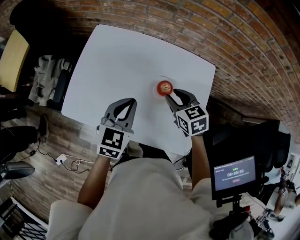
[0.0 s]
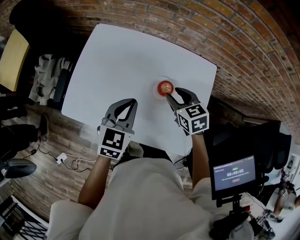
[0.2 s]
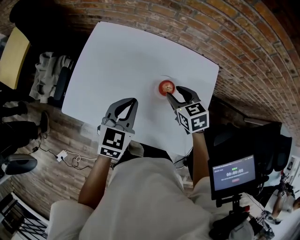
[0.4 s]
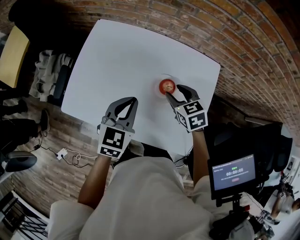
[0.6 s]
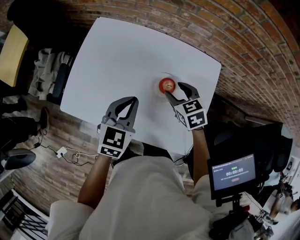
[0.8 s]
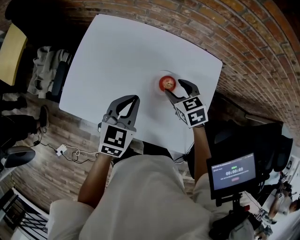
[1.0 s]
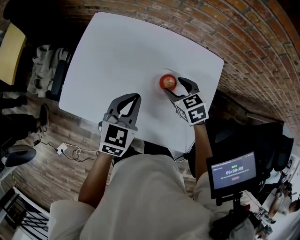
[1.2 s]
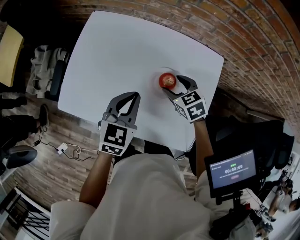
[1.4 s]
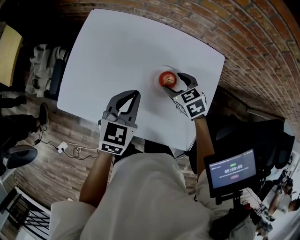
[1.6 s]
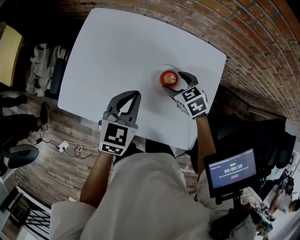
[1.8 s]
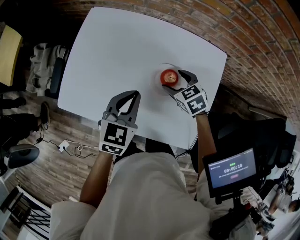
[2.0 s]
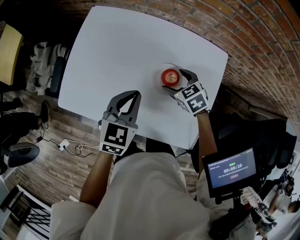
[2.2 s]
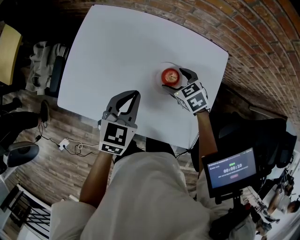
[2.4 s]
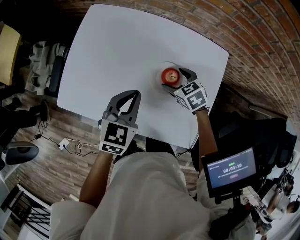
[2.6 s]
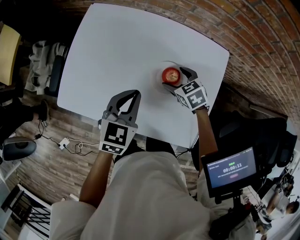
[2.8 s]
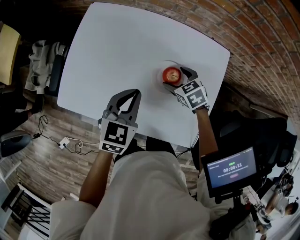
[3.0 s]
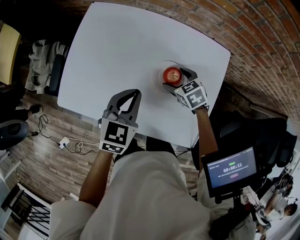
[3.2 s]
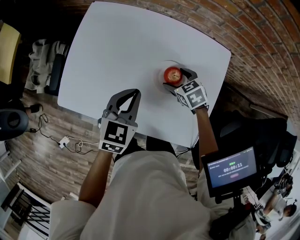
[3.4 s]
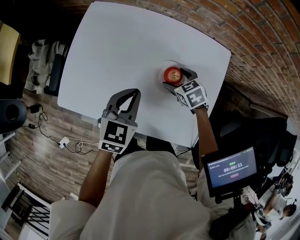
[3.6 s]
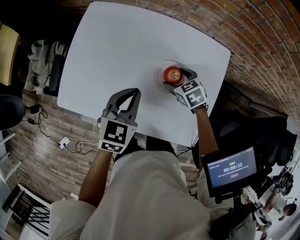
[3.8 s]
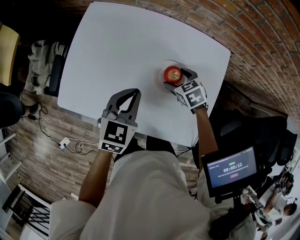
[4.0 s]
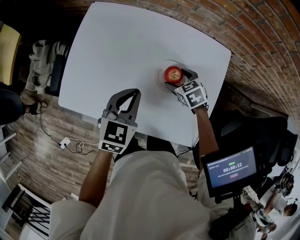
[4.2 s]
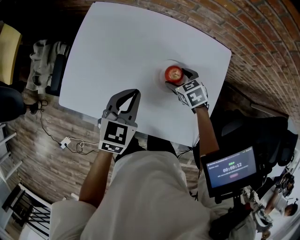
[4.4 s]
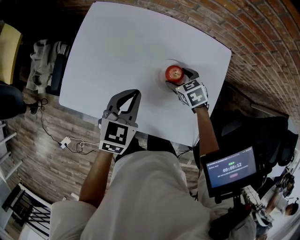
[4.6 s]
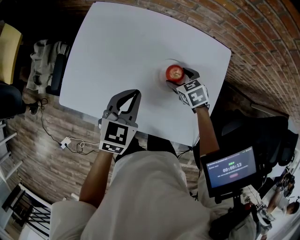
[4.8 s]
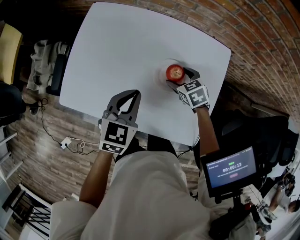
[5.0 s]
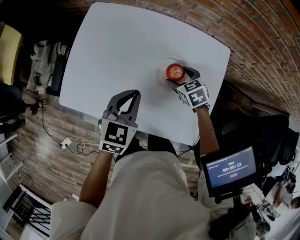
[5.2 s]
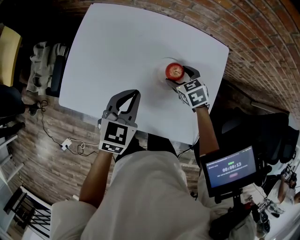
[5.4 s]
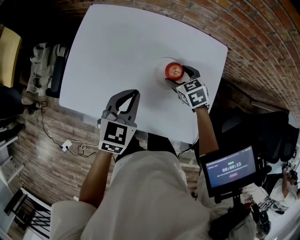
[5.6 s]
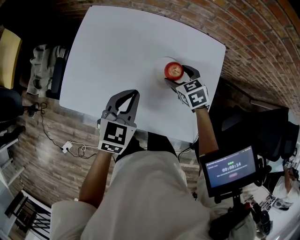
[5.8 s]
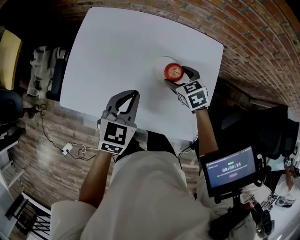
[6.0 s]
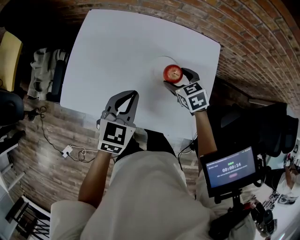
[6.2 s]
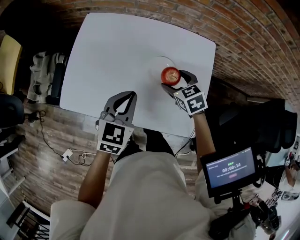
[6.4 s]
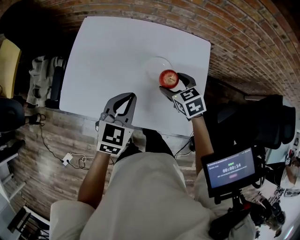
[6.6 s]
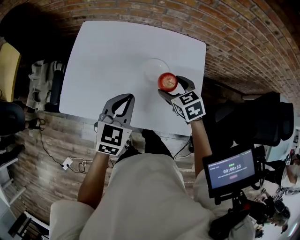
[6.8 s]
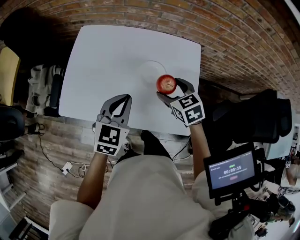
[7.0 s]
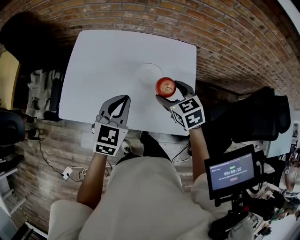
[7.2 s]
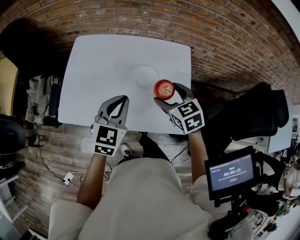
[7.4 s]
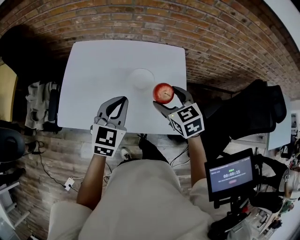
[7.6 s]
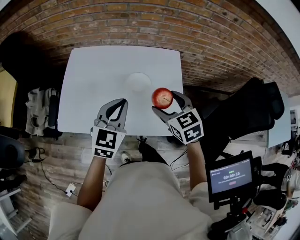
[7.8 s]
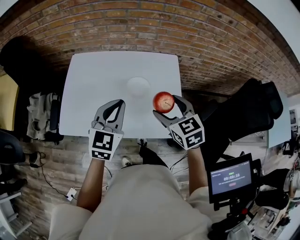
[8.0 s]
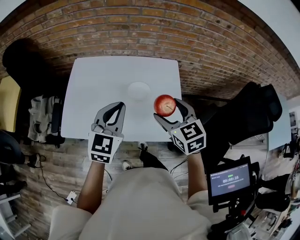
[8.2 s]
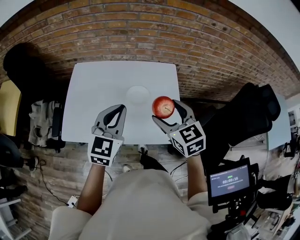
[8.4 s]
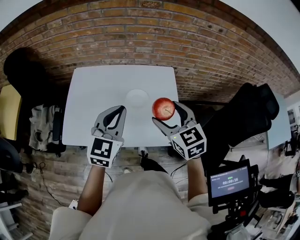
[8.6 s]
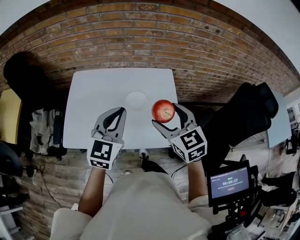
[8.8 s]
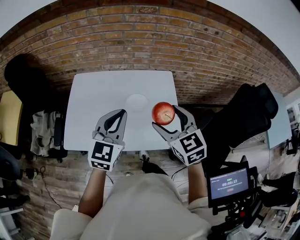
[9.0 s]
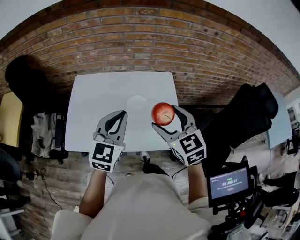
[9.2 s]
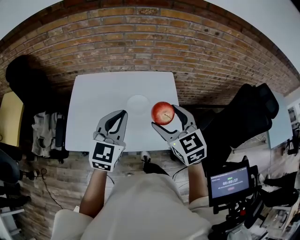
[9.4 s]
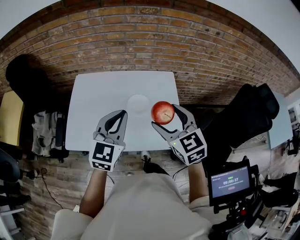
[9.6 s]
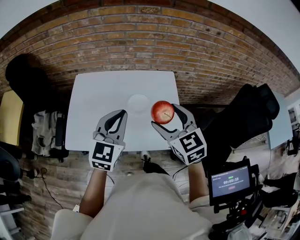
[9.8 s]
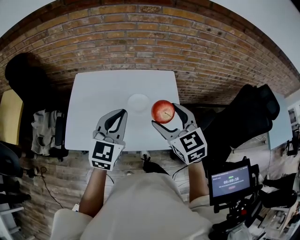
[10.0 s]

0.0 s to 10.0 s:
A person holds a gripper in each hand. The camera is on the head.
0.0 to 1.4 s: The right gripper moves downward, approximately 5 cm, and opens up.
1.4 to 2.8 s: The right gripper travels downward by roughly 5 cm.
2.8 to 5.8 s: There are only small adjustments of the grippers.
5.8 to 7.2 s: The right gripper goes about 15 cm upward and backward, while the left gripper heads upward and backward, covering about 10 cm.
7.2 to 8.6 s: The left gripper goes some 10 cm upward. The right gripper goes roughly 15 cm upward and backward.
8.6 to 10.0 s: The grippers stay close to where they were, moving slightly.

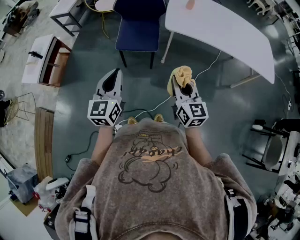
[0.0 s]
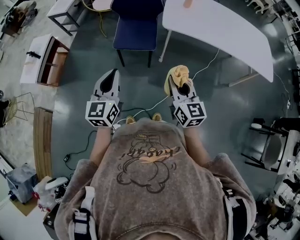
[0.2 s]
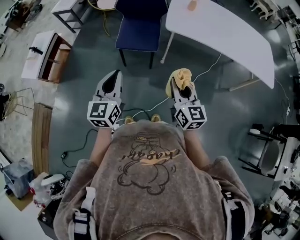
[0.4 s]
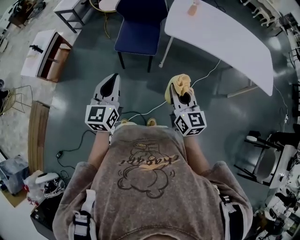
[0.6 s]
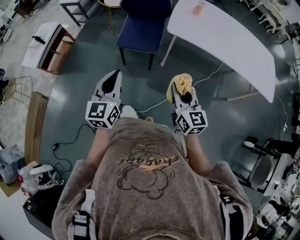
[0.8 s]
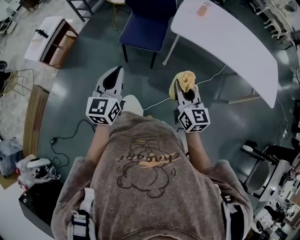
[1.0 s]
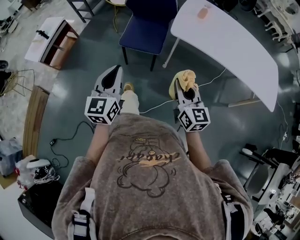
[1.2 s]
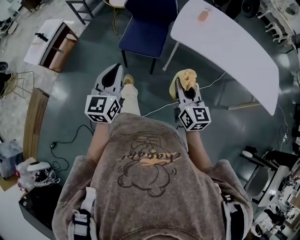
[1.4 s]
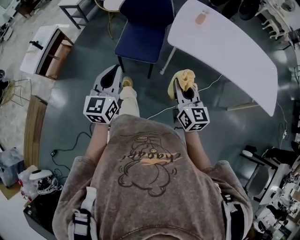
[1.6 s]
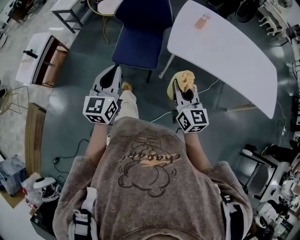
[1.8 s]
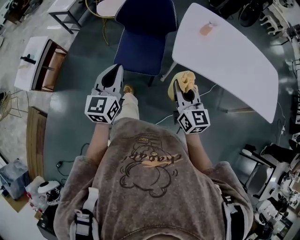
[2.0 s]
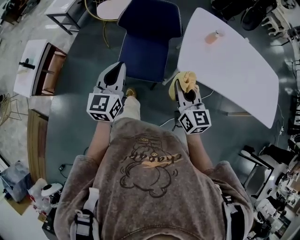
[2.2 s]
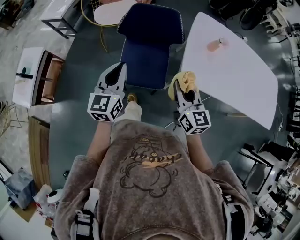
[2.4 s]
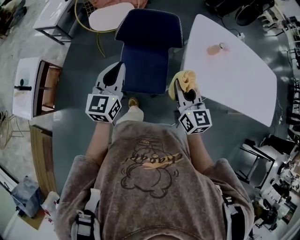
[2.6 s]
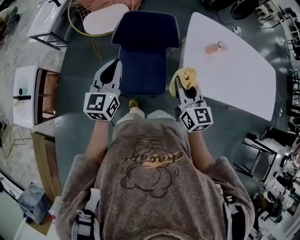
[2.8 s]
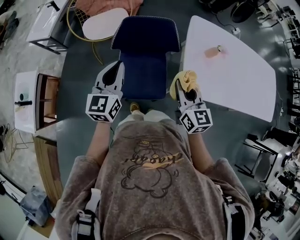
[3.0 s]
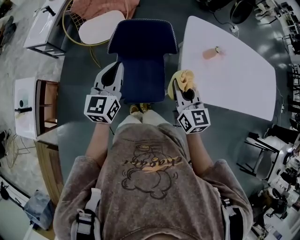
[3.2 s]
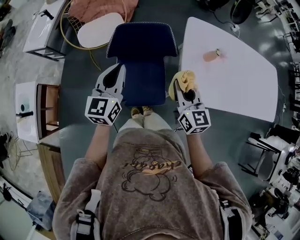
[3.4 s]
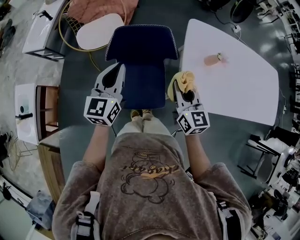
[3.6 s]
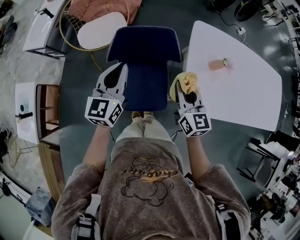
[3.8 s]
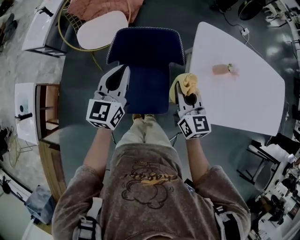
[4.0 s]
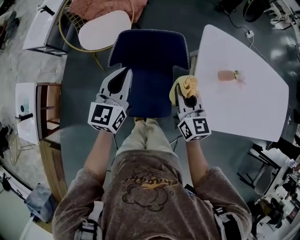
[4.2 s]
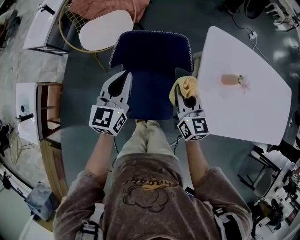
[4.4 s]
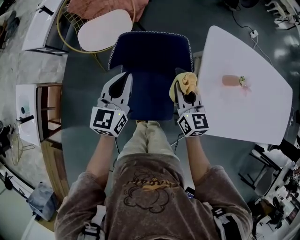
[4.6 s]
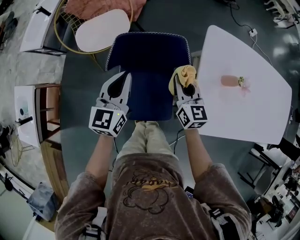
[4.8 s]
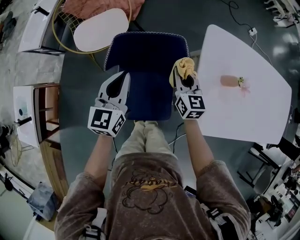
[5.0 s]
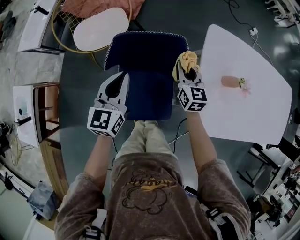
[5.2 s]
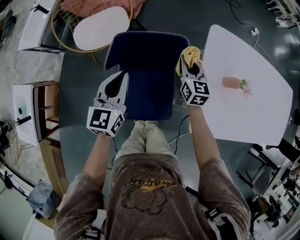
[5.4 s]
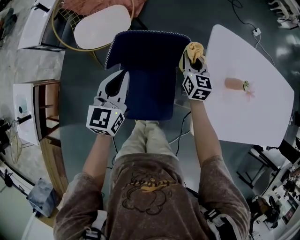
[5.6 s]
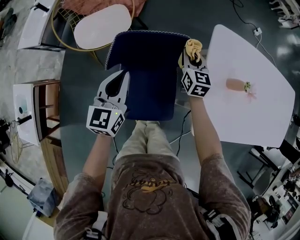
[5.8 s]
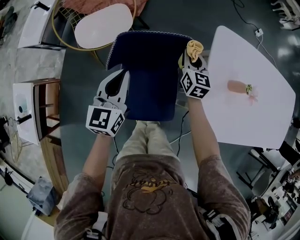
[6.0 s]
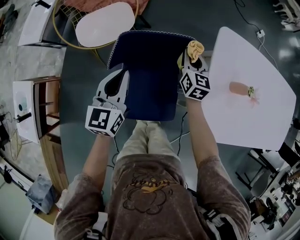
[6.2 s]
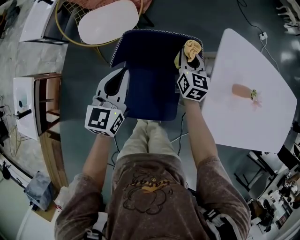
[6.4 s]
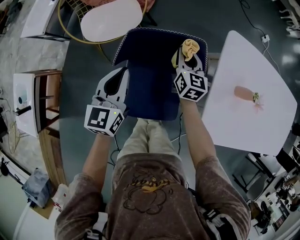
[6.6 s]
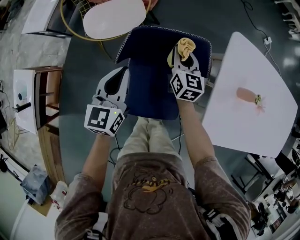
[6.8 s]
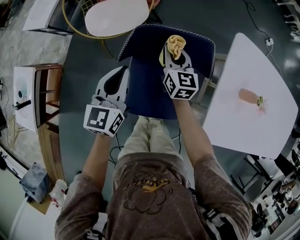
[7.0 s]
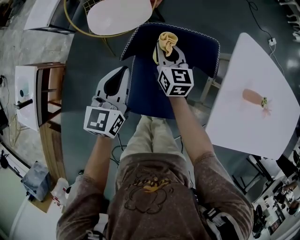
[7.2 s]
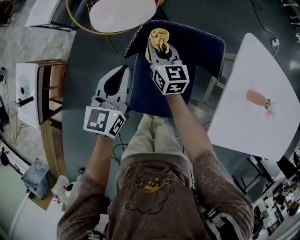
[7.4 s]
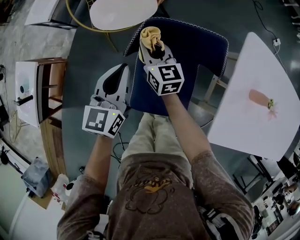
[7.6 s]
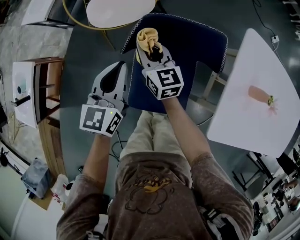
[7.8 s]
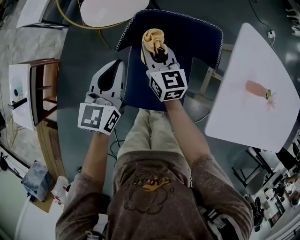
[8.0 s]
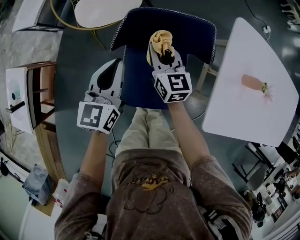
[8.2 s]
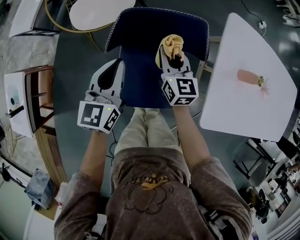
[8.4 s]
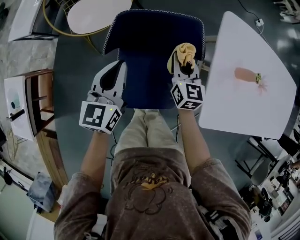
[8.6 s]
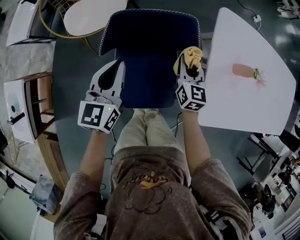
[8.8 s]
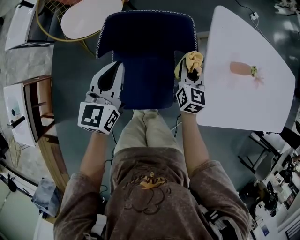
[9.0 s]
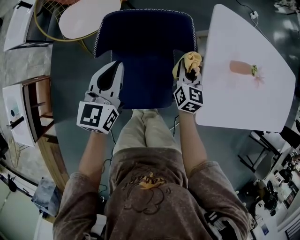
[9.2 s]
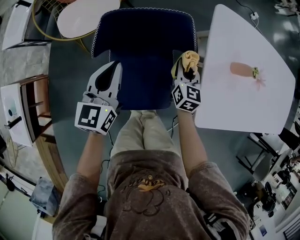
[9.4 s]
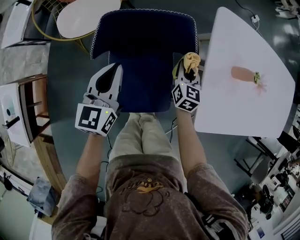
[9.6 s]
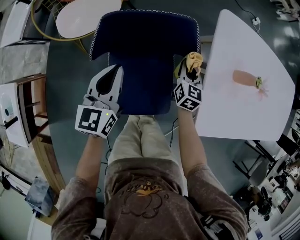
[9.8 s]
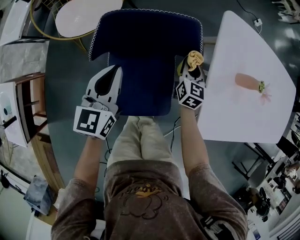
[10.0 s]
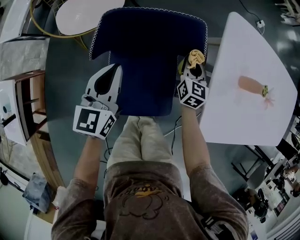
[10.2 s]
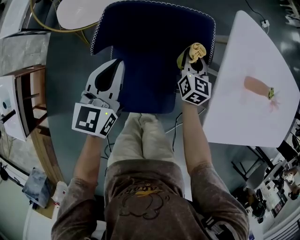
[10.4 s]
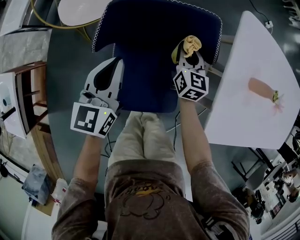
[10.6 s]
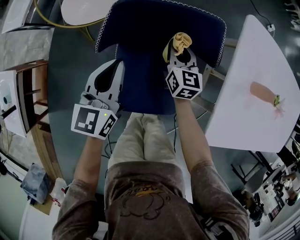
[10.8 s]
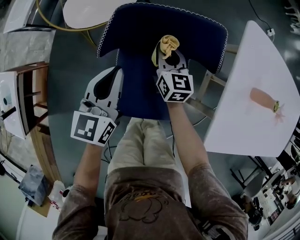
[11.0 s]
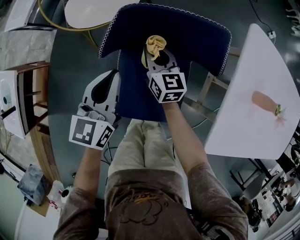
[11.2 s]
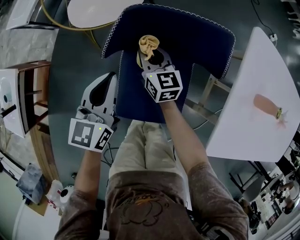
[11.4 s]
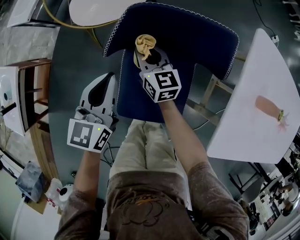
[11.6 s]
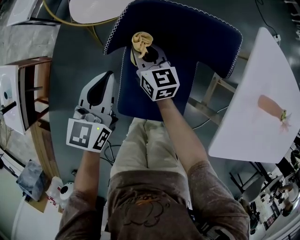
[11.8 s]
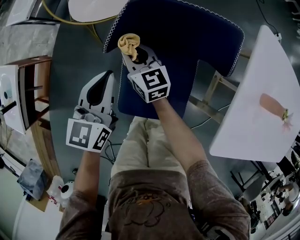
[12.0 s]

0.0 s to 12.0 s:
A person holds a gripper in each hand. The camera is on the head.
0.0 to 1.6 s: The left gripper moves forward, some 10 cm; the right gripper goes some 15 cm forward and to the right.
1.6 to 3.0 s: Both grippers move forward, roughly 40 cm.
3.0 to 4.4 s: Both grippers travel together forward and downward, some 20 cm.
4.4 to 6.0 s: The left gripper shifts by about 5 cm; the right gripper is displaced forward and downward by some 20 cm.
6.0 to 7.6 s: The right gripper moves to the left, some 30 cm, and rotates about 30 degrees. Meanwhile the left gripper heads to the left, covering approximately 10 cm.
7.6 to 9.0 s: The left gripper heads to the right, covering approximately 10 cm. The right gripper goes approximately 30 cm to the right, and turns by approximately 40 degrees.
9.0 to 10.4 s: The left gripper heads downward, covering about 5 cm; the right gripper heads downward and forward, covering roughly 10 cm.
10.4 to 12.0 s: The right gripper ends up about 30 cm from where it was, and turns by some 40 degrees, while the left gripper ends up roughly 10 cm from where it was.

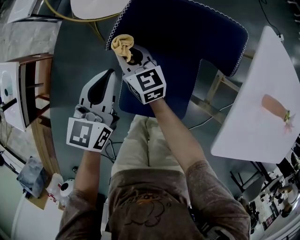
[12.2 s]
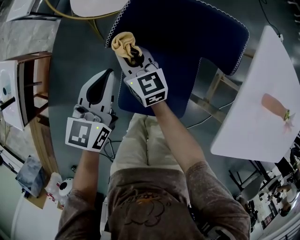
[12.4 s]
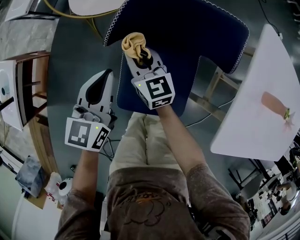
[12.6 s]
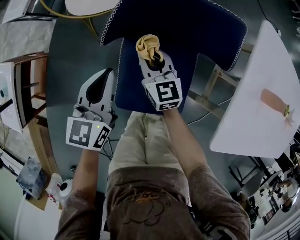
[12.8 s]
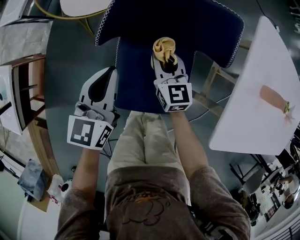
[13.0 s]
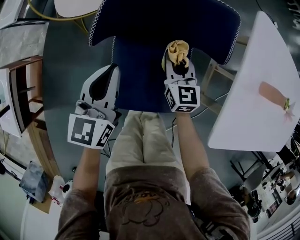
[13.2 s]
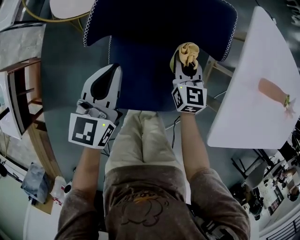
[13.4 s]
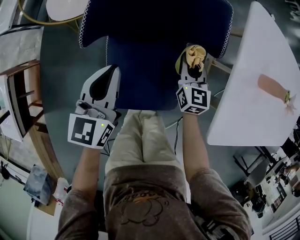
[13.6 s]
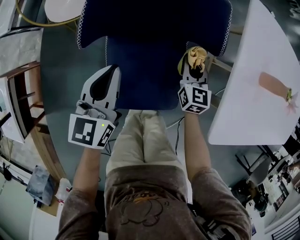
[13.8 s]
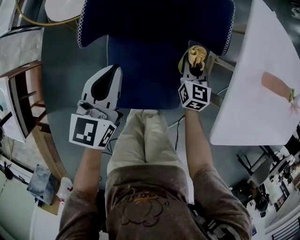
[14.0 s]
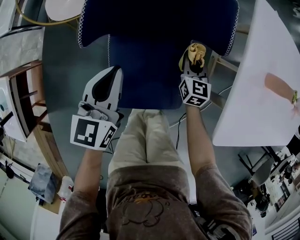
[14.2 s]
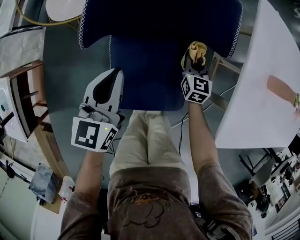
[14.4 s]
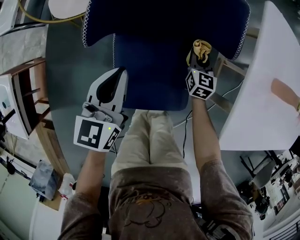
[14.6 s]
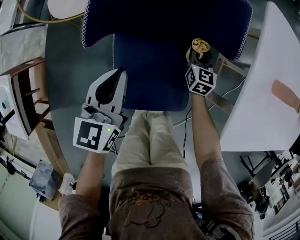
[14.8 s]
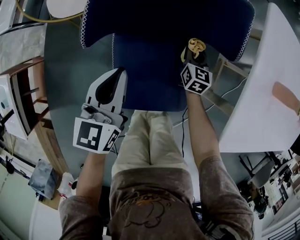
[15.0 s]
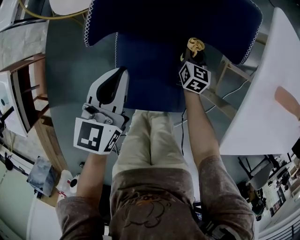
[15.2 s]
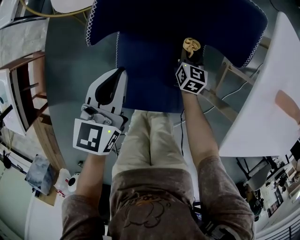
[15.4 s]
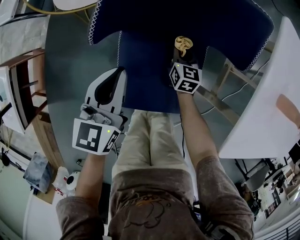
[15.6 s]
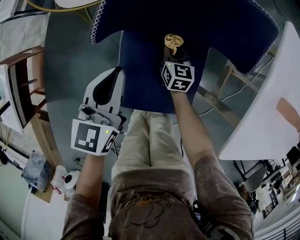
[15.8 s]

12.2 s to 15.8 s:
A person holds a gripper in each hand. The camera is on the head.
12.2 to 14.0 s: The right gripper moves roughly 35 cm, and rotates approximately 40 degrees. The left gripper shifts by roughly 10 cm.
14.0 to 15.8 s: The right gripper moves to the left and downward, about 20 cm, while the left gripper goes roughly 5 cm to the left.
